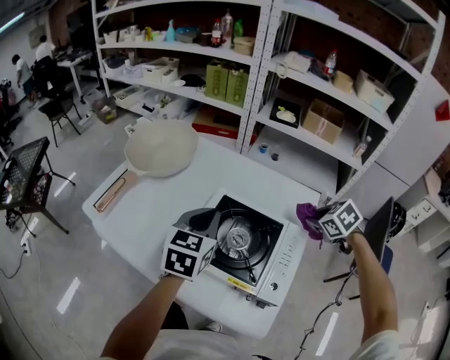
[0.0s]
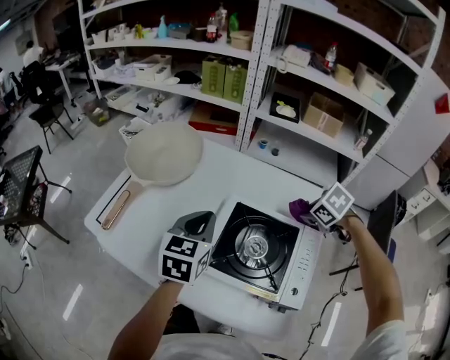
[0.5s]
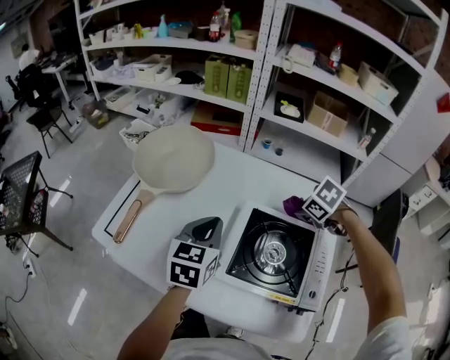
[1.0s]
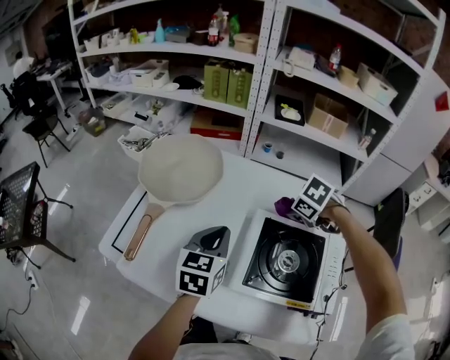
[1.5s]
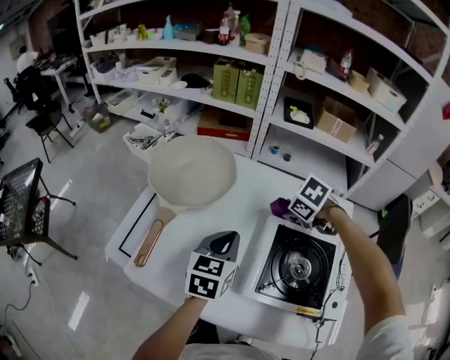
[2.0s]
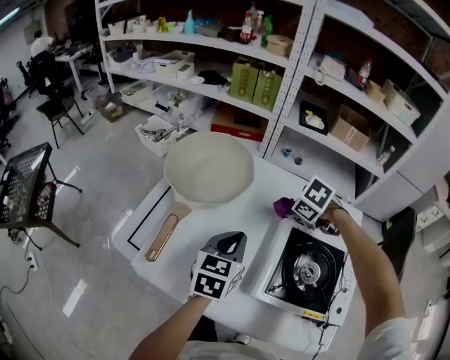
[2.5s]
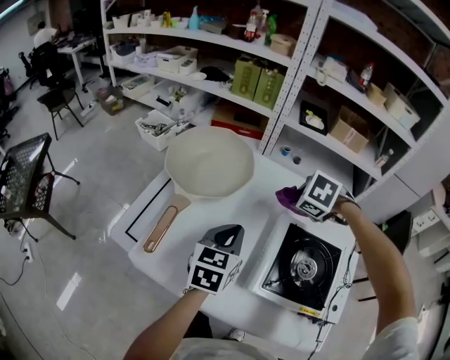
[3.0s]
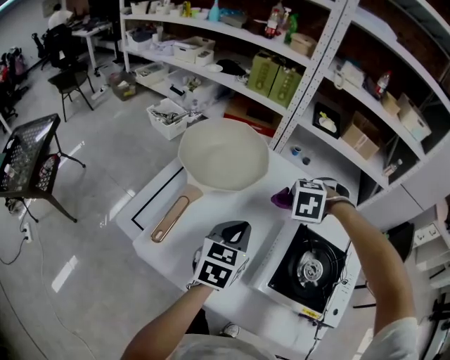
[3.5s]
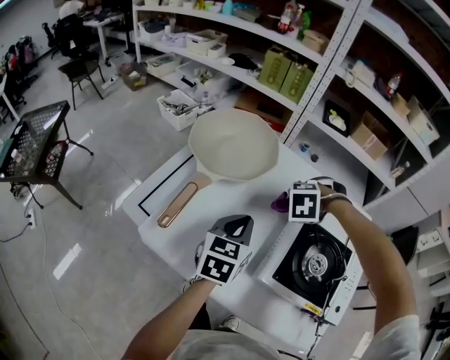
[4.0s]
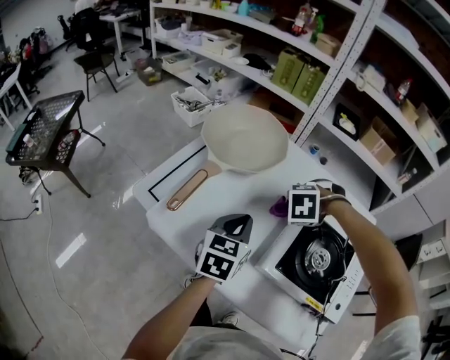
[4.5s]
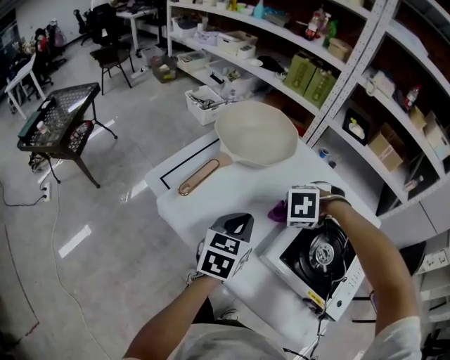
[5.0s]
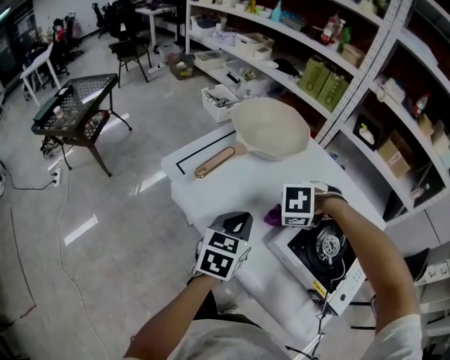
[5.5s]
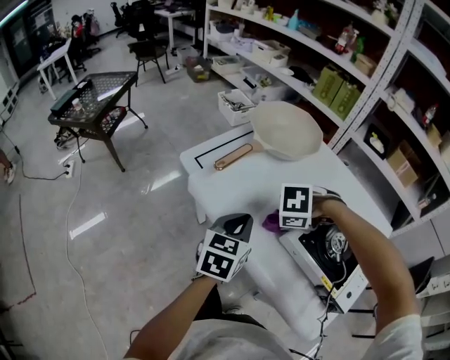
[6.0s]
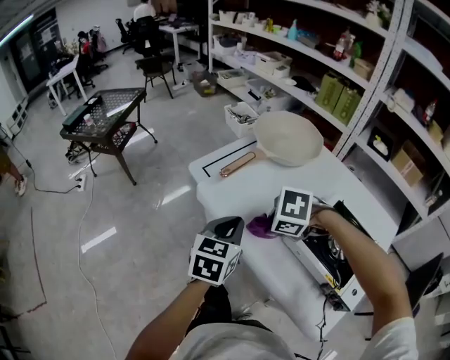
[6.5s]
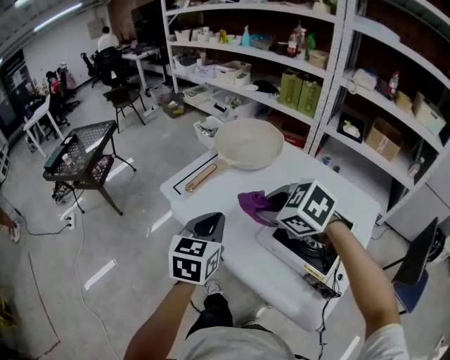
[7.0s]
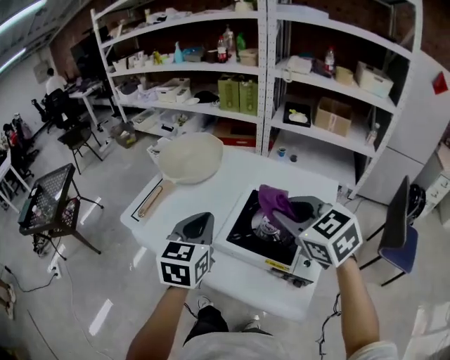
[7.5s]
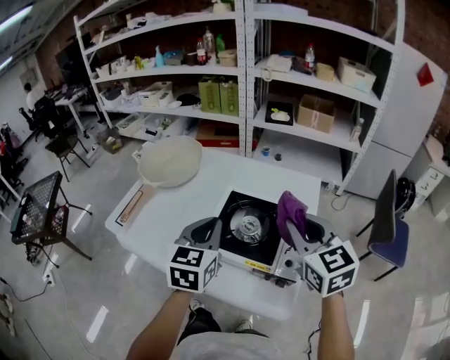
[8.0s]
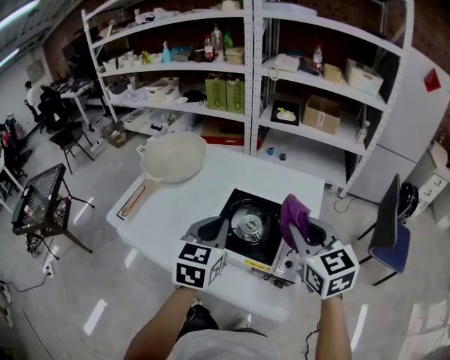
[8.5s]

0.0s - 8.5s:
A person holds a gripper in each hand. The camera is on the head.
0.0s - 2.0s: The left gripper ends up some 15 cm from where it was. The right gripper changes place by about 30 cm.
2.0s - 4.0s: The left gripper shifts by some 5 cm. The right gripper moves some 10 cm, and rolls counterclockwise, seen from behind, by some 50 degrees.
4.0s - 6.5s: The right gripper ends up approximately 30 cm from where it was, and rotates about 30 degrees. The left gripper shifts by some 20 cm, and turns by about 20 degrees.
6.5s - 8.5s: The right gripper moves about 40 cm, and tips its fingers upward by approximately 60 degrees; the left gripper ends up some 25 cm from where it was, and changes its angle by approximately 30 degrees.

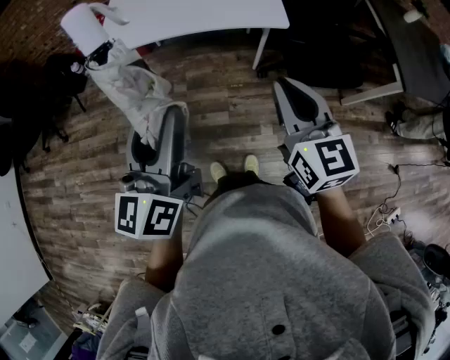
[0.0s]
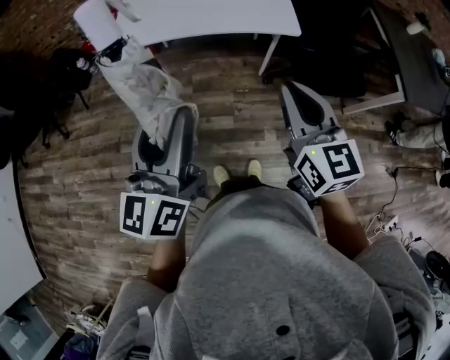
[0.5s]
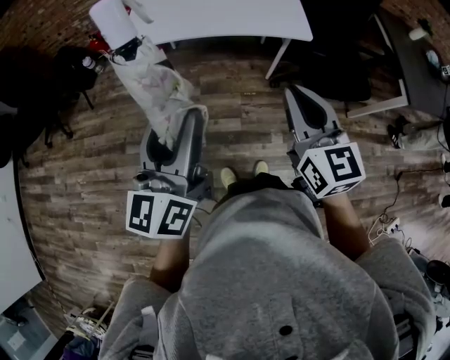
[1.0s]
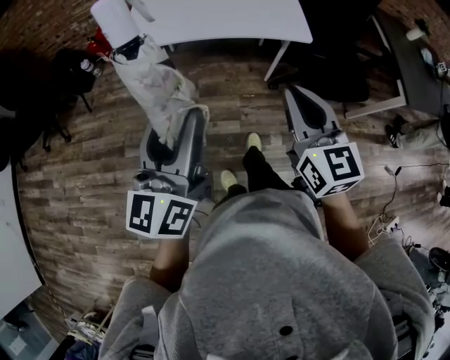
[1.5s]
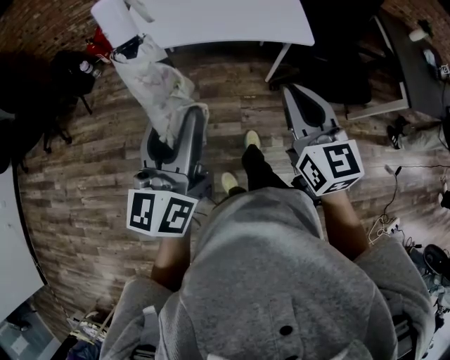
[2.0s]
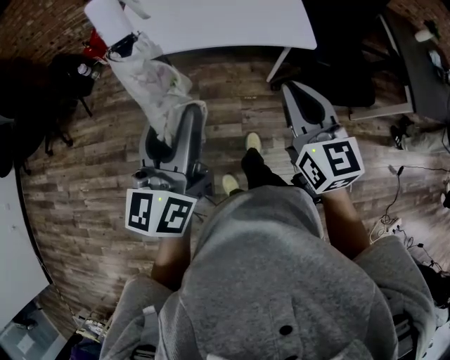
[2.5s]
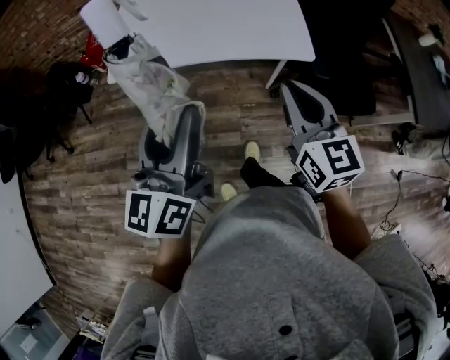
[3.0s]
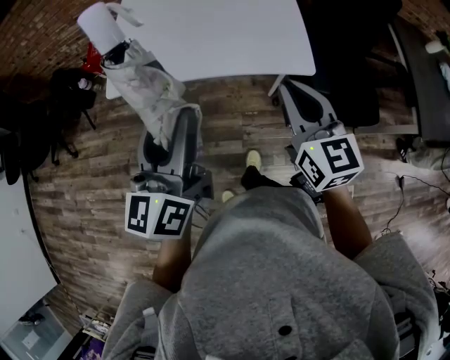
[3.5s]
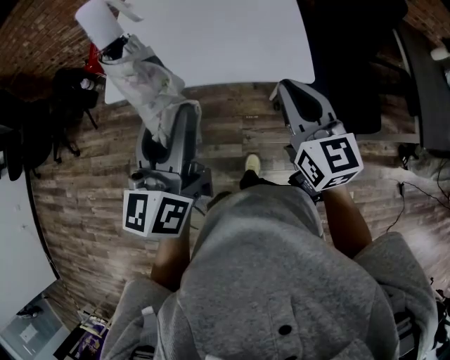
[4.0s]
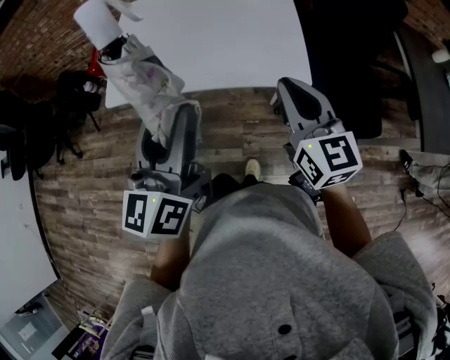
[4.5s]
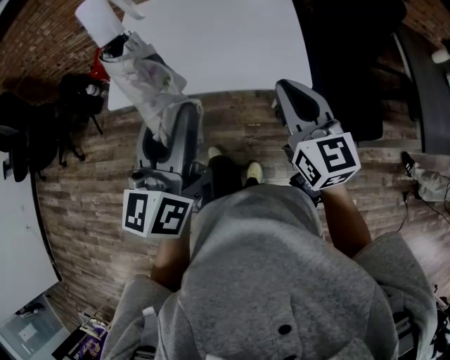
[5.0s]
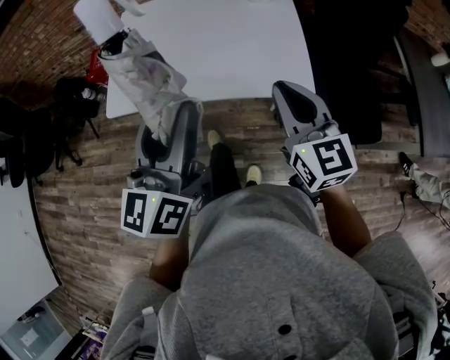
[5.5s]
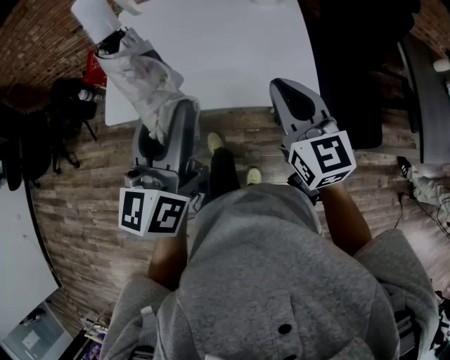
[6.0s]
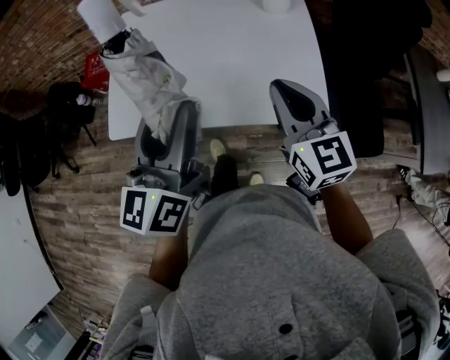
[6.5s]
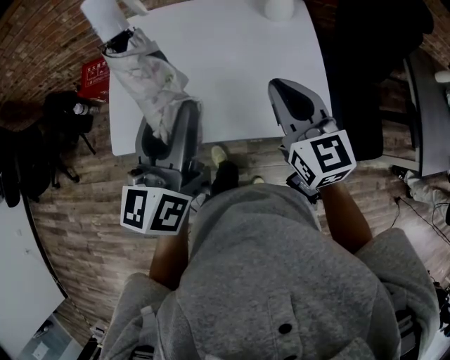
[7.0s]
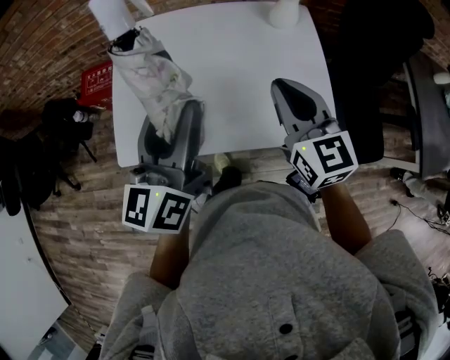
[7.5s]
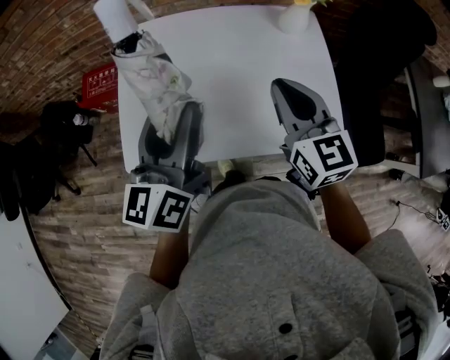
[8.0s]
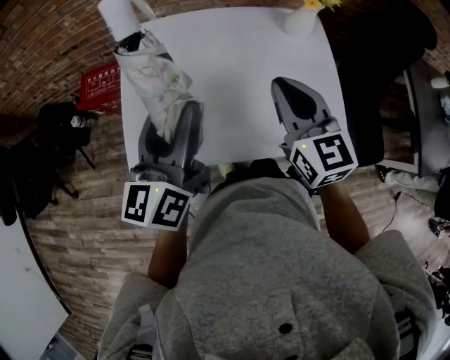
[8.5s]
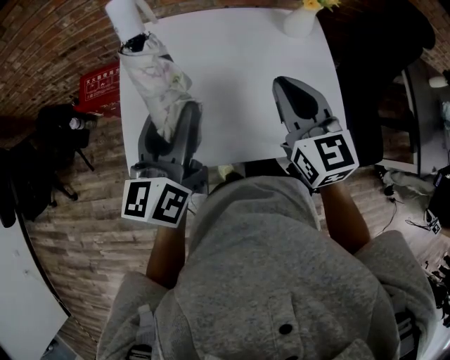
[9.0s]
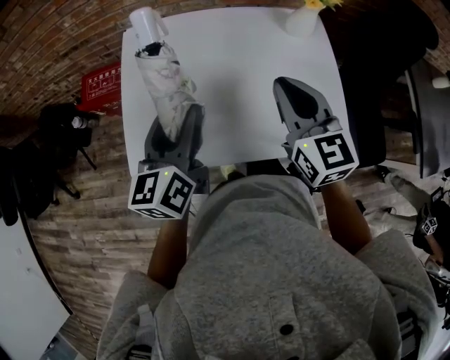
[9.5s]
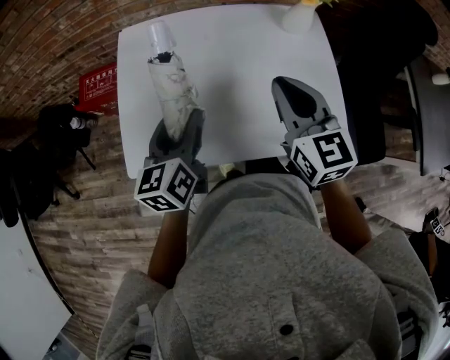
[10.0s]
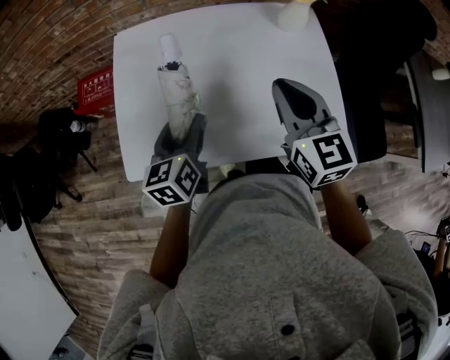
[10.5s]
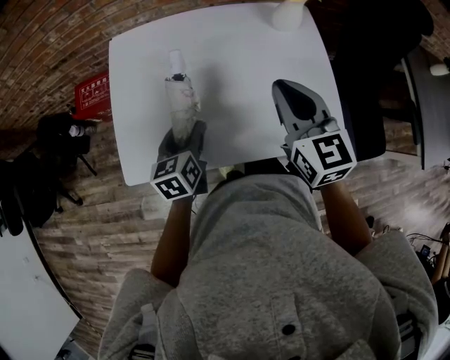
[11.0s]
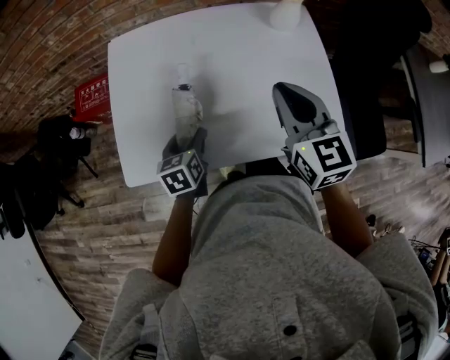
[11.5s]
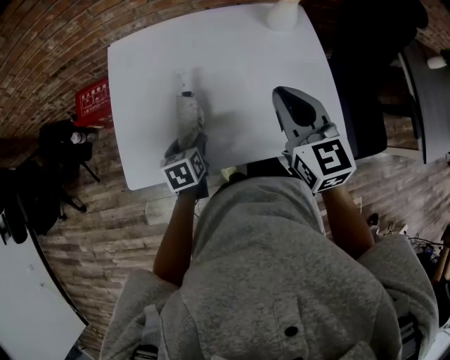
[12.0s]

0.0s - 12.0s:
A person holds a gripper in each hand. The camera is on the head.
0.0s - 2.0s: The grippers both shift to the left by approximately 10 cm.
2.0s - 4.0s: Both grippers travel together forward and to the right, roughly 25 cm.
4.0s - 6.0s: Both grippers travel together forward, roughly 10 cm.
6.0s - 8.0s: The grippers both shift forward and to the left by some 20 cm.
8.0s - 10.0s: The left gripper is displaced downward by about 10 cm.
10.0s - 12.0s: The left gripper is displaced downward by about 20 cm, and angles its fingers downward, by some 30 degrees.

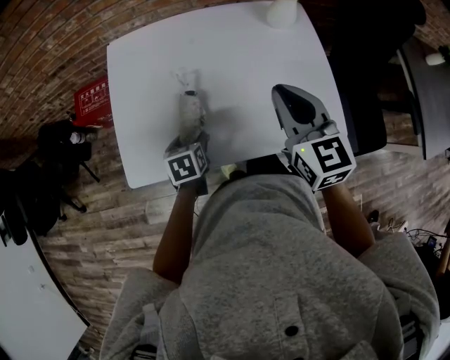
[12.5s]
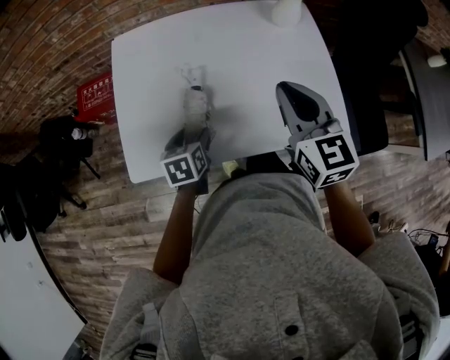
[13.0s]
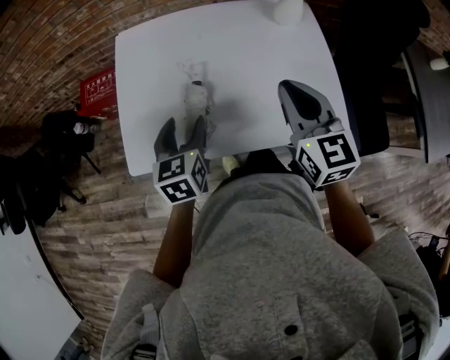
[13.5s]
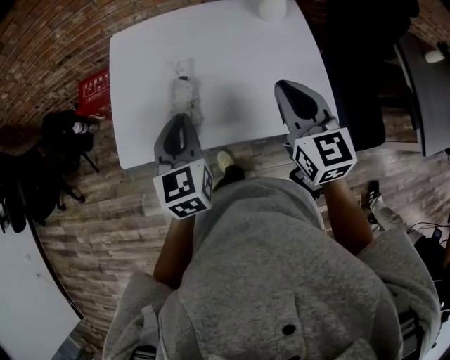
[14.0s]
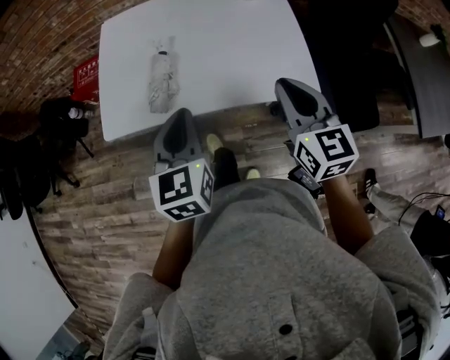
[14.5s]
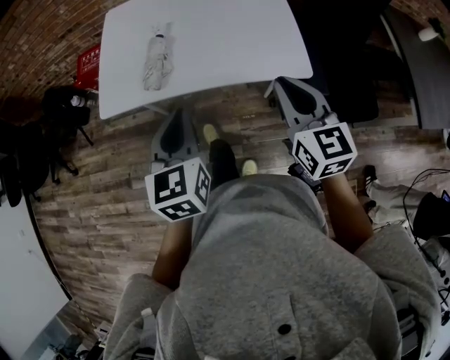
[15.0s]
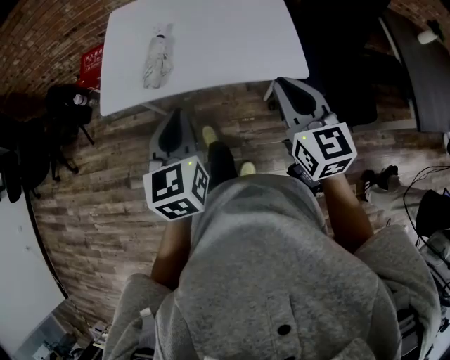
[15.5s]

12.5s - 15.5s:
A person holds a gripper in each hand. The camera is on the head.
12.5s - 14.0s: The right gripper is displaced backward by roughly 5 cm, while the left gripper shifts approximately 20 cm upward, tilts its fingers about 30 degrees upward, and closes its fingers.
14.0s - 15.5s: Both grippers travel together backward, approximately 20 cm.

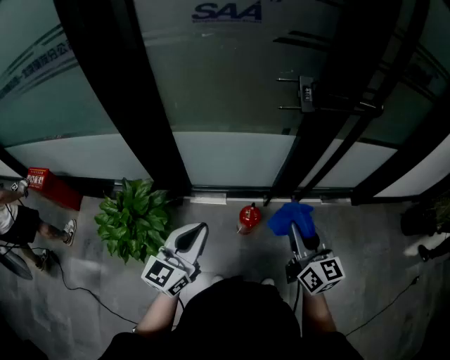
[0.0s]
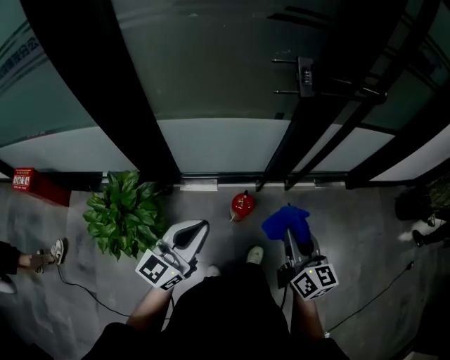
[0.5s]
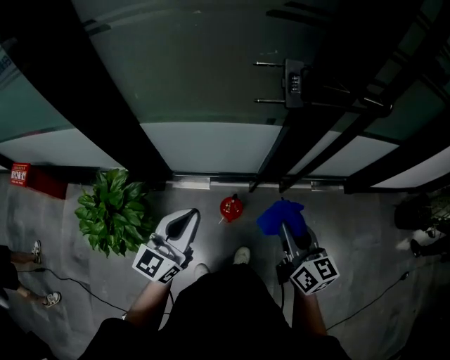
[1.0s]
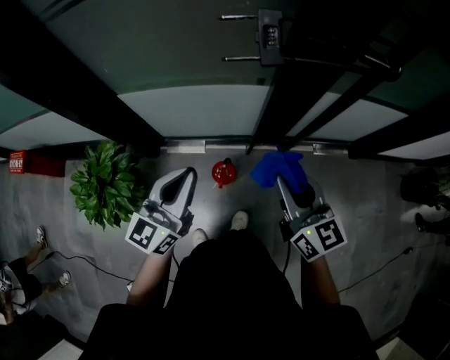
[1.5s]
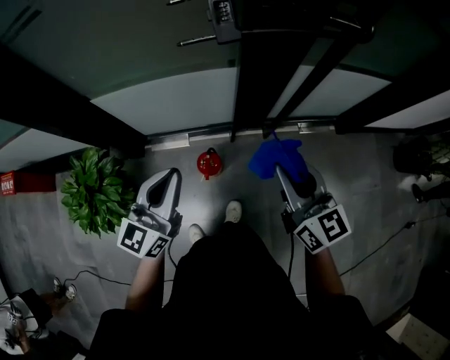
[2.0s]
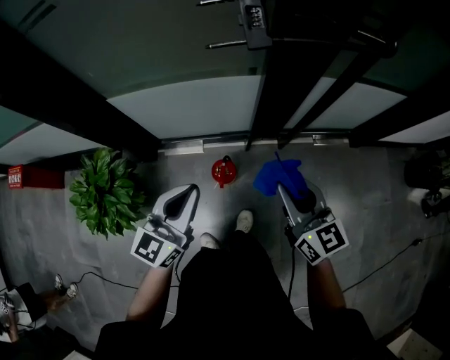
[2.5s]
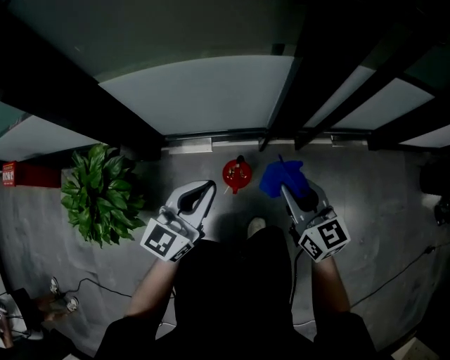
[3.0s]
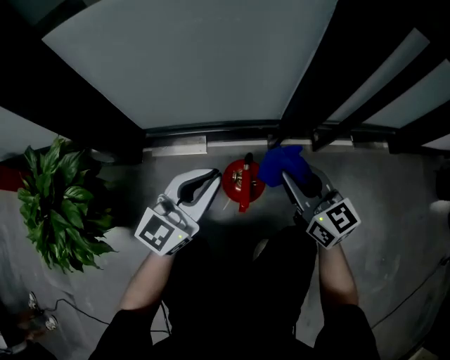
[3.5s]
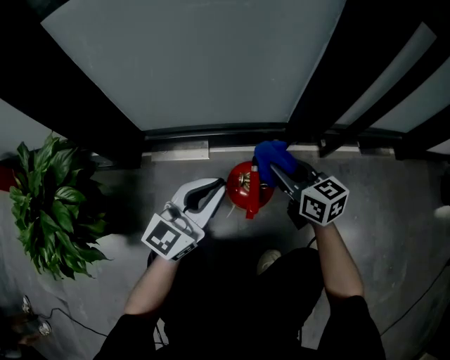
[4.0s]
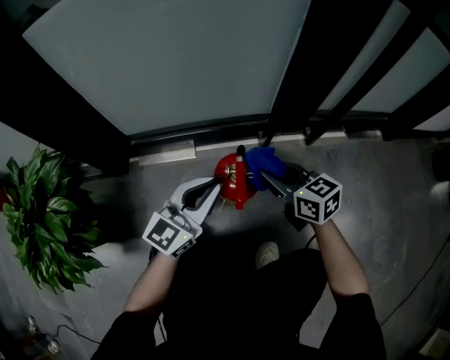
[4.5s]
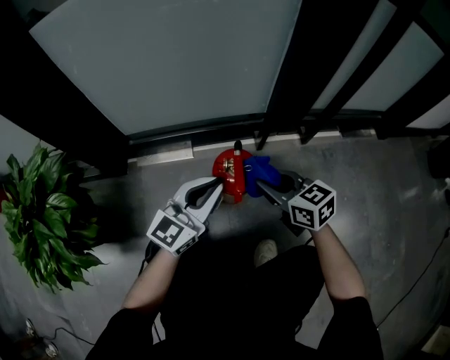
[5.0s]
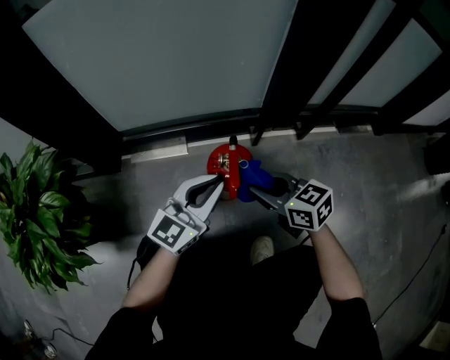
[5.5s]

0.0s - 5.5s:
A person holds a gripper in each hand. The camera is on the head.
0.0s - 2.0s: The right gripper shifts some 15 cm to the right and forward. Meanwhile the left gripper moves forward and to the right, approximately 15 cm.
2.0s - 3.5s: Both grippers travel together downward, some 40 cm.
3.5s - 5.5s: The left gripper goes roughly 10 cm downward; the right gripper is displaced downward and backward by some 15 cm, and changes its angle by some 20 degrees.
